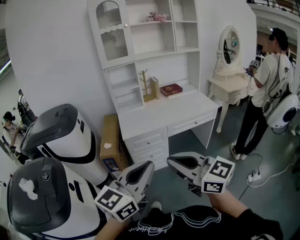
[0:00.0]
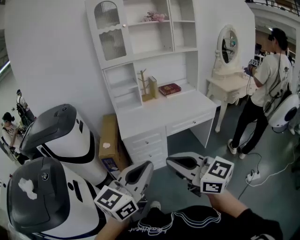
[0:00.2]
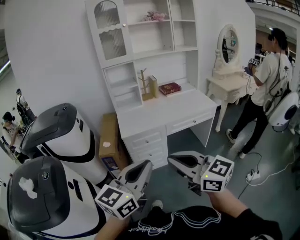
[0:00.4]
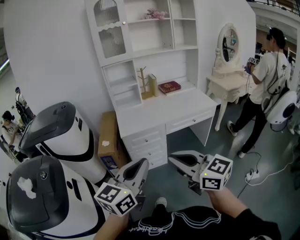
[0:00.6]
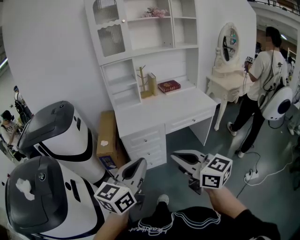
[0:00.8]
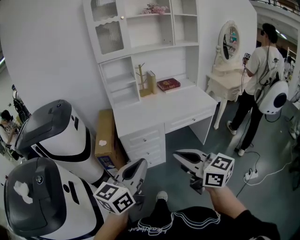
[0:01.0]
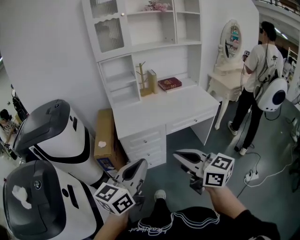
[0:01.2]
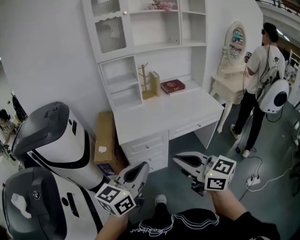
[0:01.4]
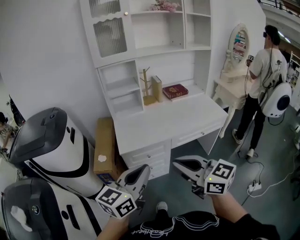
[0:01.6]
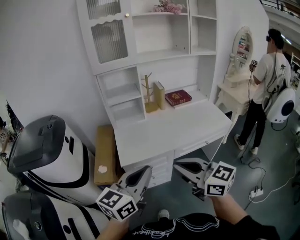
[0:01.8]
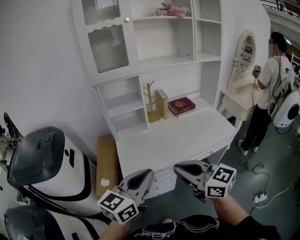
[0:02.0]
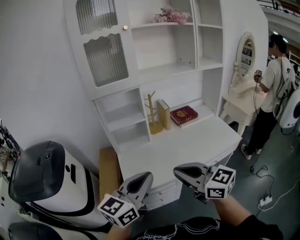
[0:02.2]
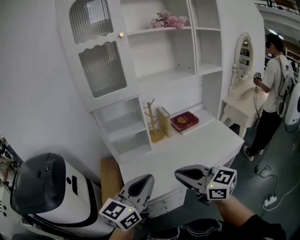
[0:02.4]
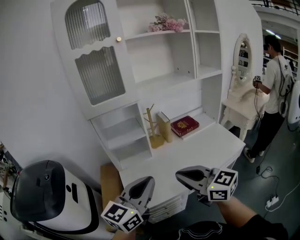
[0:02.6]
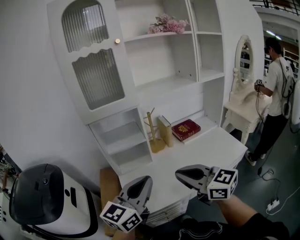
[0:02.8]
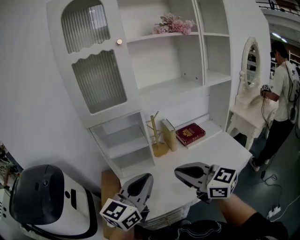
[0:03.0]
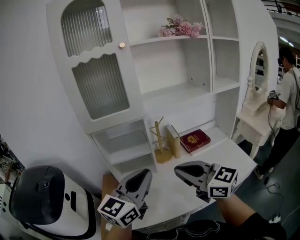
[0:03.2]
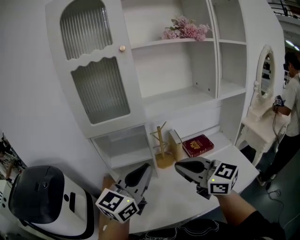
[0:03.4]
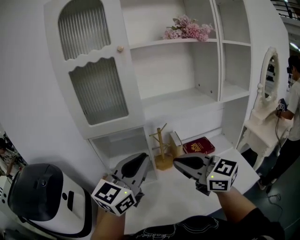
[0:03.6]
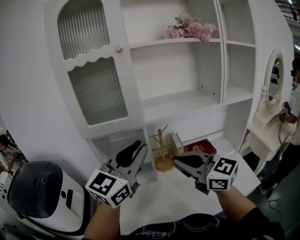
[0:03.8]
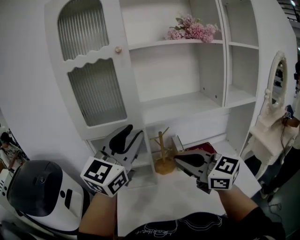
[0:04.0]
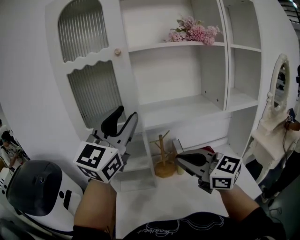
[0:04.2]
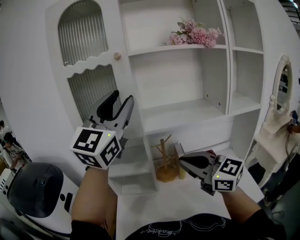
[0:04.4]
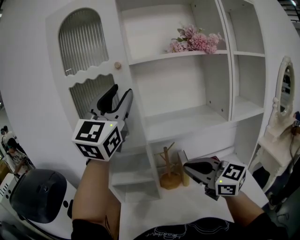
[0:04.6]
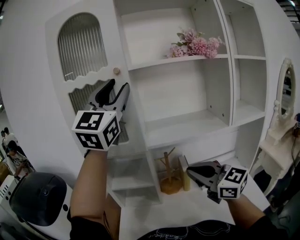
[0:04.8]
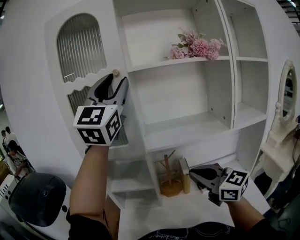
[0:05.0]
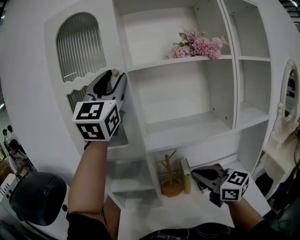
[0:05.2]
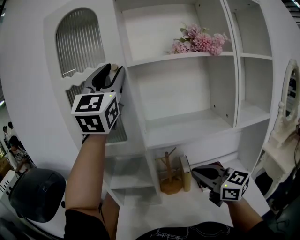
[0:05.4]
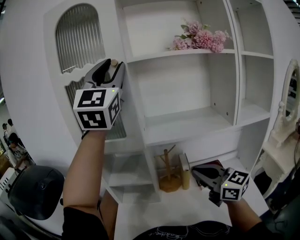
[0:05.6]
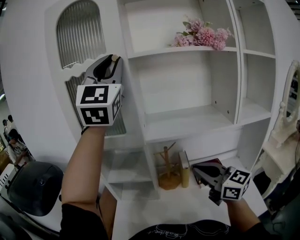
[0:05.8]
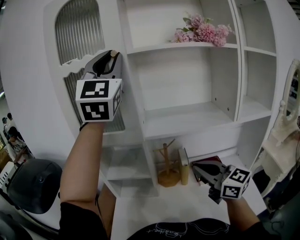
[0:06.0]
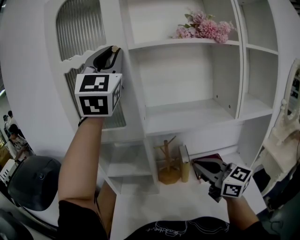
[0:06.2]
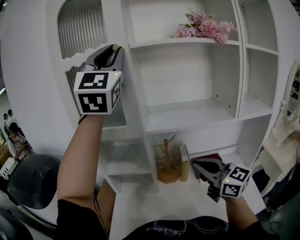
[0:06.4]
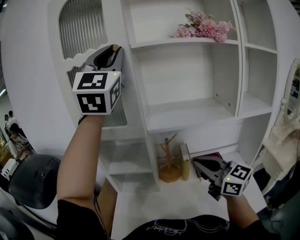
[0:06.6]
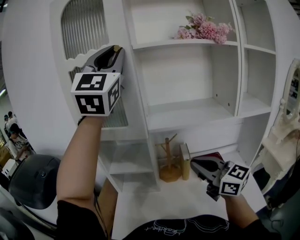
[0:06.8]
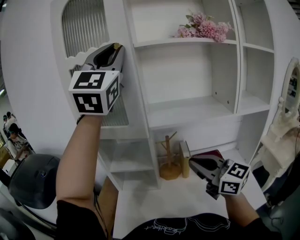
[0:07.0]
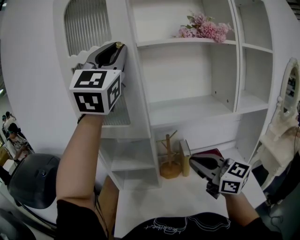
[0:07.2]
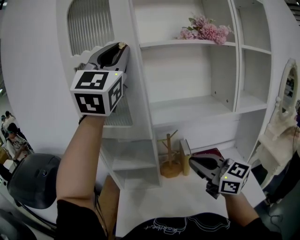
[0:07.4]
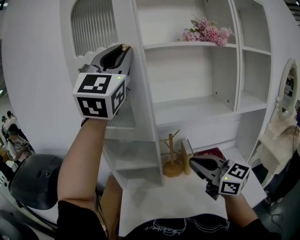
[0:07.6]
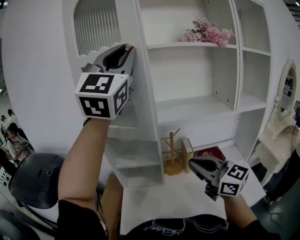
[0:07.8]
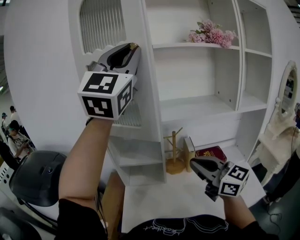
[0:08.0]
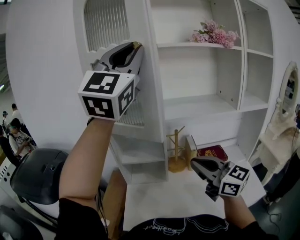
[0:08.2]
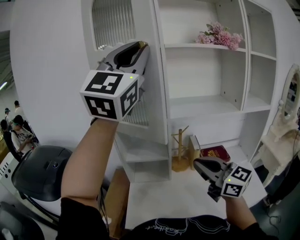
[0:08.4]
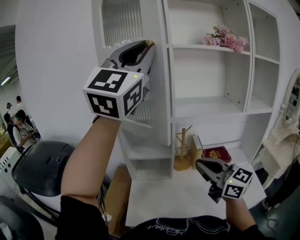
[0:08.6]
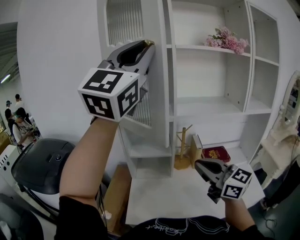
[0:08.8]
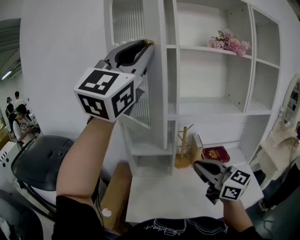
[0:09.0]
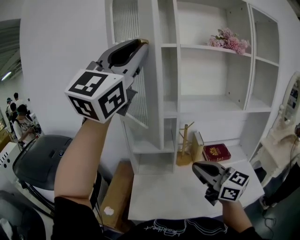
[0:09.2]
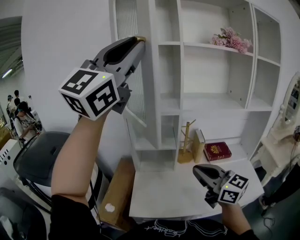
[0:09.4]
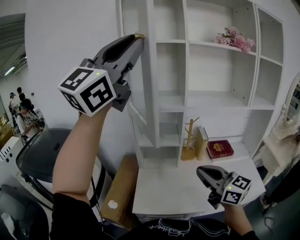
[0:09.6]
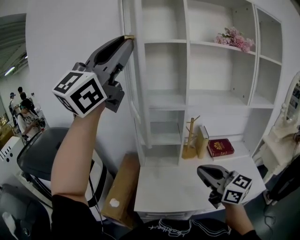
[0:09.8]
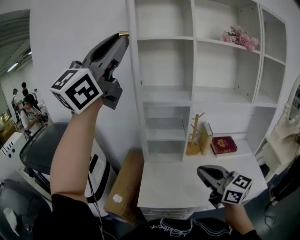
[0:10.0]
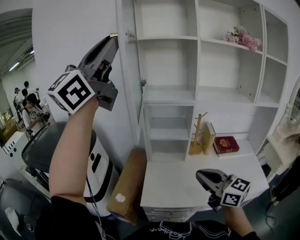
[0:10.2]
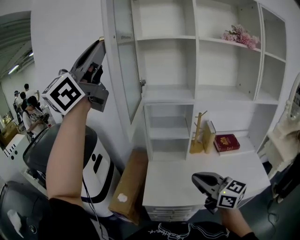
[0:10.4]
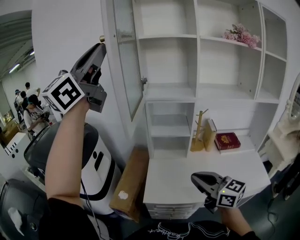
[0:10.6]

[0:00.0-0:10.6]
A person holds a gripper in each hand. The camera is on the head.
0:00.0 to 0:01.6: The two grippers go roughly 20 cm forward.
0:01.6 to 0:03.0: Both grippers move forward, some 35 cm.
0:03.0 to 0:04.6: The left gripper is displaced upward and forward by roughly 40 cm, turns by some 50 degrees, and opens up. The right gripper shifts roughly 20 cm forward, to the right and upward.
0:04.6 to 0:06.0: The left gripper shifts approximately 10 cm upward and forward, and swivels roughly 20 degrees, while the right gripper is displaced to the right by about 5 cm.
0:06.0 to 0:07.6: The right gripper goes about 5 cm to the left, while the left gripper shifts about 5 cm backward.
0:07.6 to 0:09.0: The right gripper is displaced to the left and backward by approximately 10 cm, while the left gripper moves backward and to the left, some 15 cm.
0:09.0 to 0:10.6: The left gripper goes approximately 20 cm to the left, and changes its angle by roughly 20 degrees, while the right gripper heads backward, to the left and downward, covering some 15 cm.

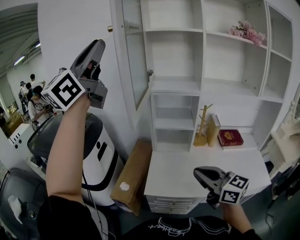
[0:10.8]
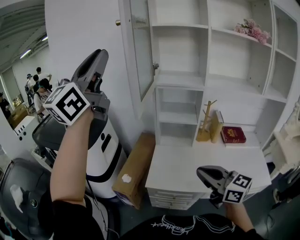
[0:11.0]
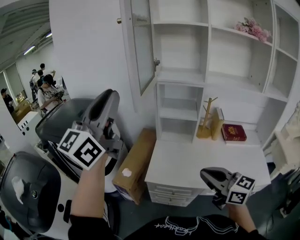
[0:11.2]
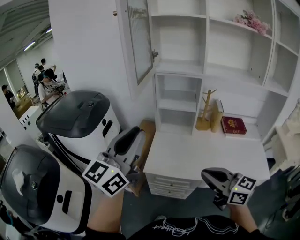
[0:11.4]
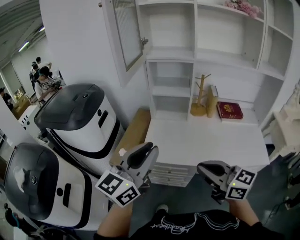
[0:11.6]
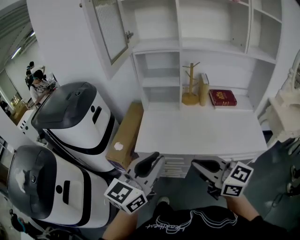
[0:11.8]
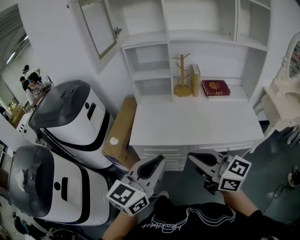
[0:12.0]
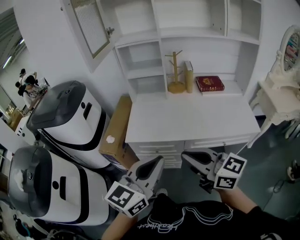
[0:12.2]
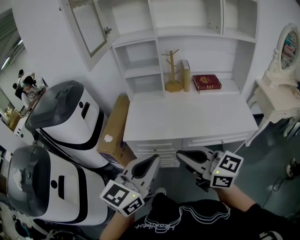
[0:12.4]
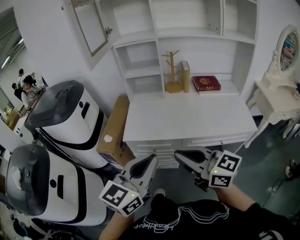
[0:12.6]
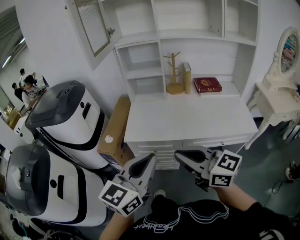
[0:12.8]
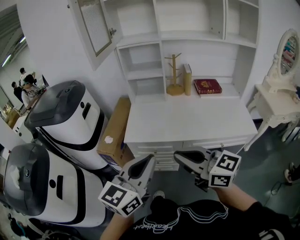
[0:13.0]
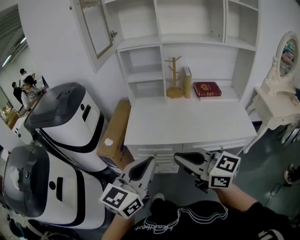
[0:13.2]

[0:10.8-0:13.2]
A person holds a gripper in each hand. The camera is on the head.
0:10.8 to 0:12.0: The left gripper heads downward, backward and to the right, covering approximately 60 cm, and tilts its fingers about 40 degrees downward; the right gripper goes roughly 20 cm backward.
0:12.0 to 0:13.2: The grippers stay close to where they were, moving slightly.

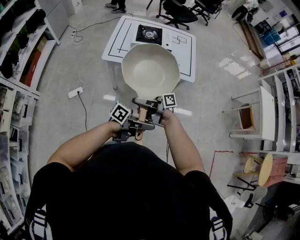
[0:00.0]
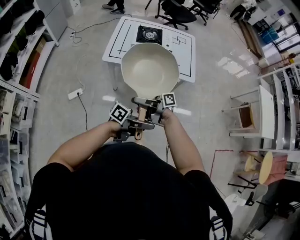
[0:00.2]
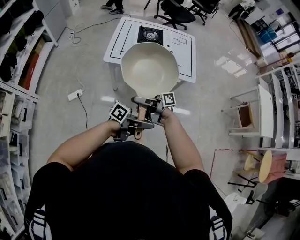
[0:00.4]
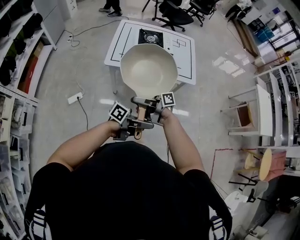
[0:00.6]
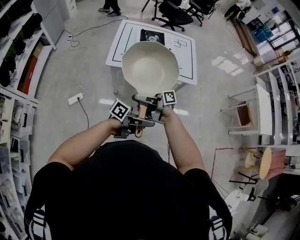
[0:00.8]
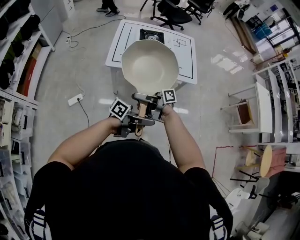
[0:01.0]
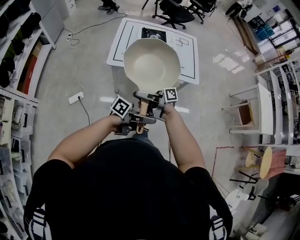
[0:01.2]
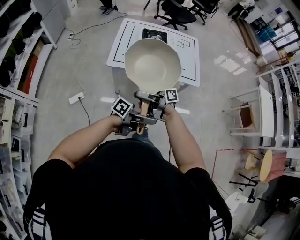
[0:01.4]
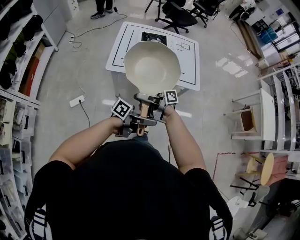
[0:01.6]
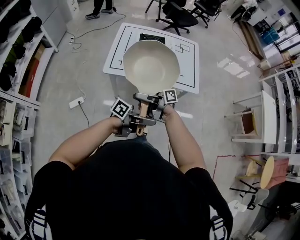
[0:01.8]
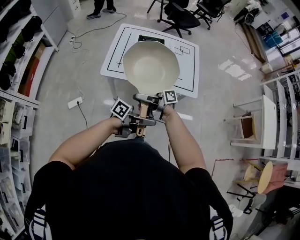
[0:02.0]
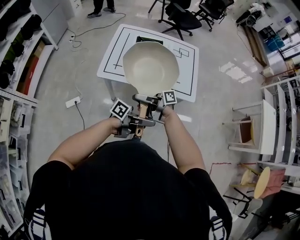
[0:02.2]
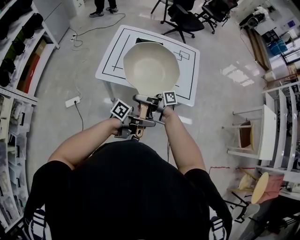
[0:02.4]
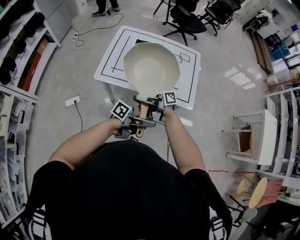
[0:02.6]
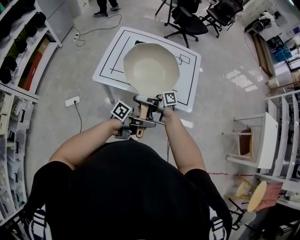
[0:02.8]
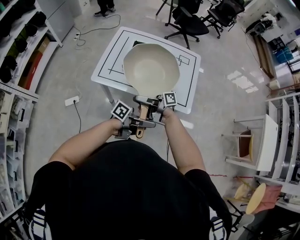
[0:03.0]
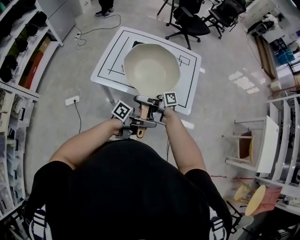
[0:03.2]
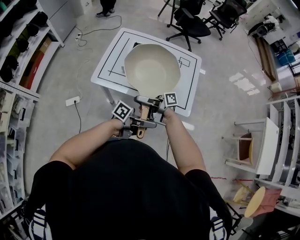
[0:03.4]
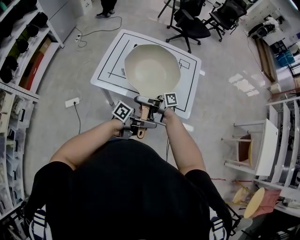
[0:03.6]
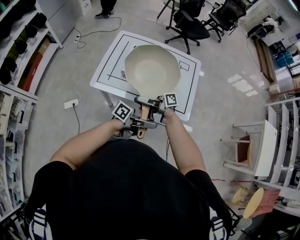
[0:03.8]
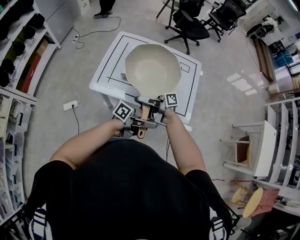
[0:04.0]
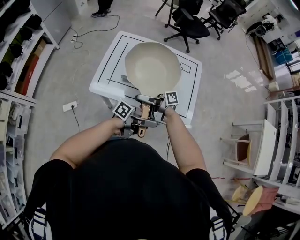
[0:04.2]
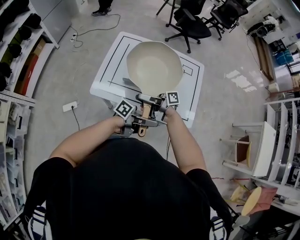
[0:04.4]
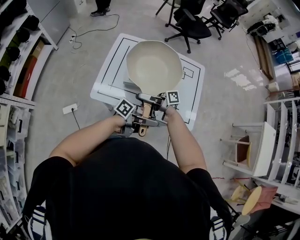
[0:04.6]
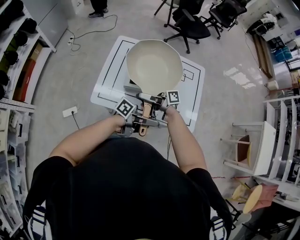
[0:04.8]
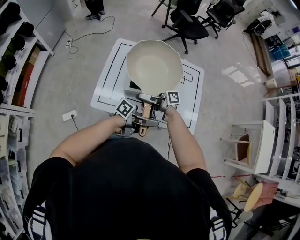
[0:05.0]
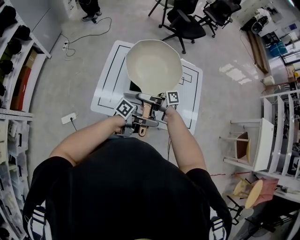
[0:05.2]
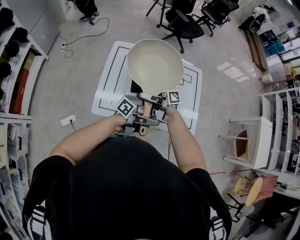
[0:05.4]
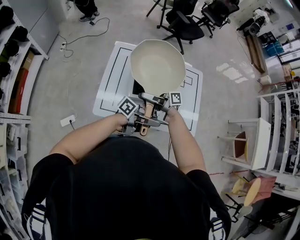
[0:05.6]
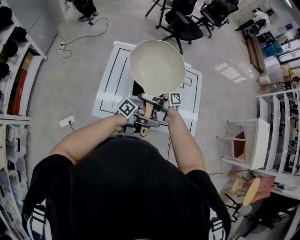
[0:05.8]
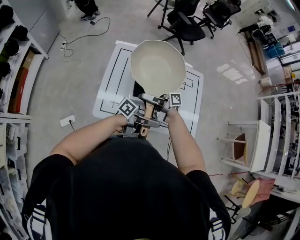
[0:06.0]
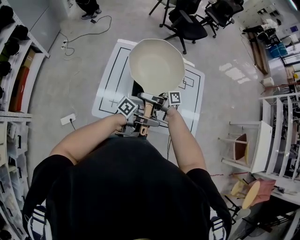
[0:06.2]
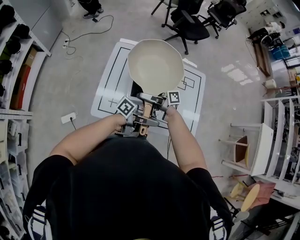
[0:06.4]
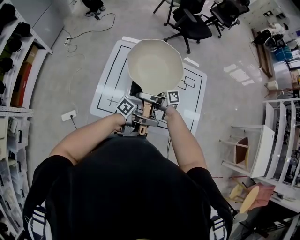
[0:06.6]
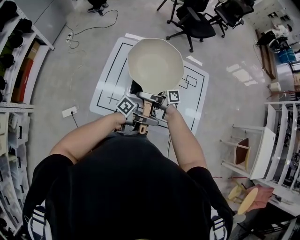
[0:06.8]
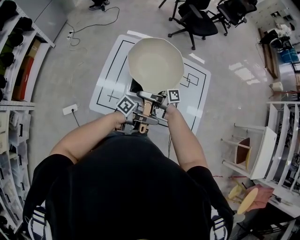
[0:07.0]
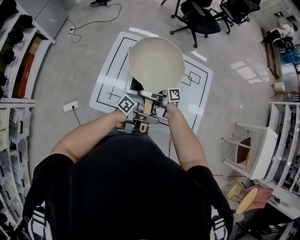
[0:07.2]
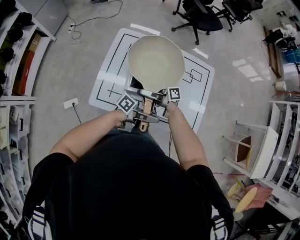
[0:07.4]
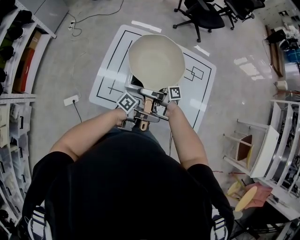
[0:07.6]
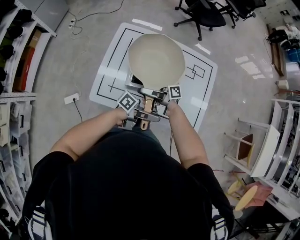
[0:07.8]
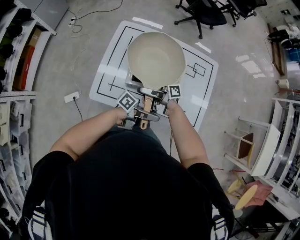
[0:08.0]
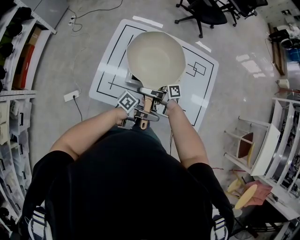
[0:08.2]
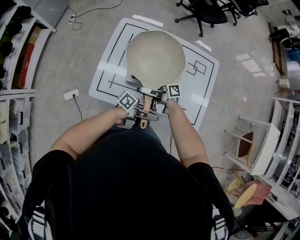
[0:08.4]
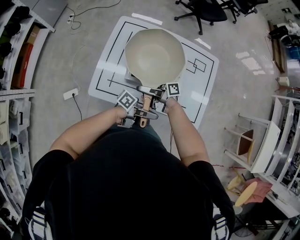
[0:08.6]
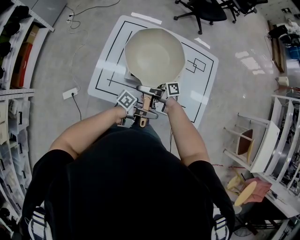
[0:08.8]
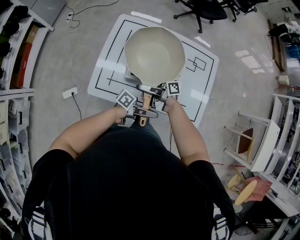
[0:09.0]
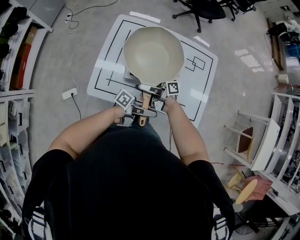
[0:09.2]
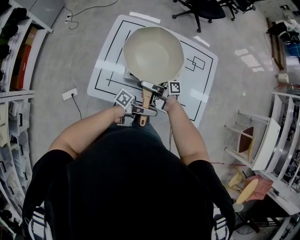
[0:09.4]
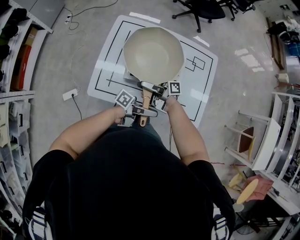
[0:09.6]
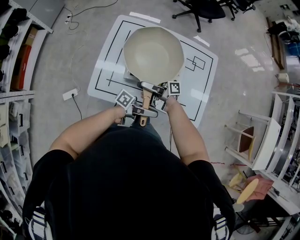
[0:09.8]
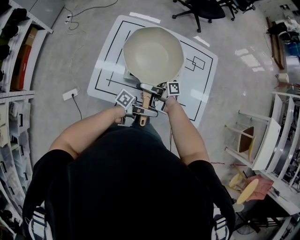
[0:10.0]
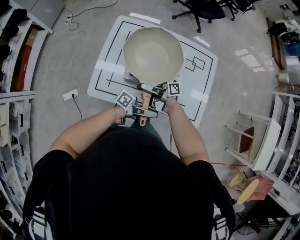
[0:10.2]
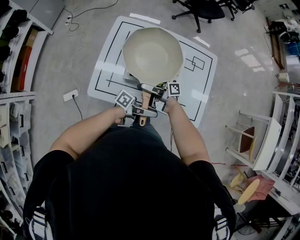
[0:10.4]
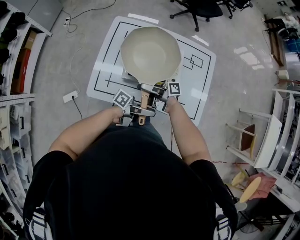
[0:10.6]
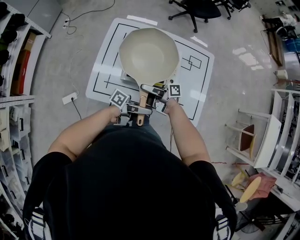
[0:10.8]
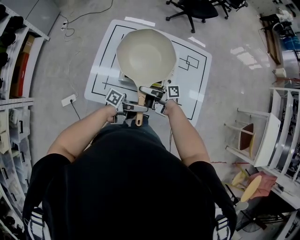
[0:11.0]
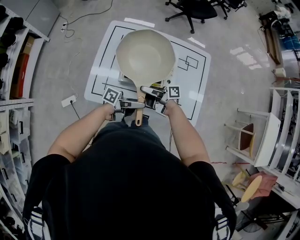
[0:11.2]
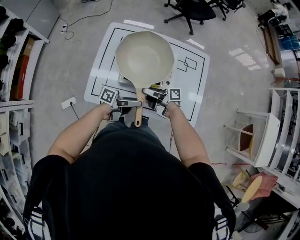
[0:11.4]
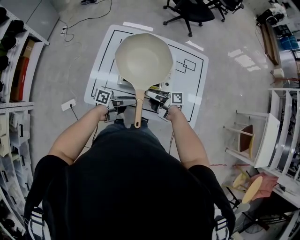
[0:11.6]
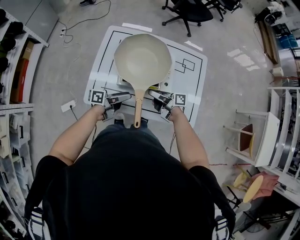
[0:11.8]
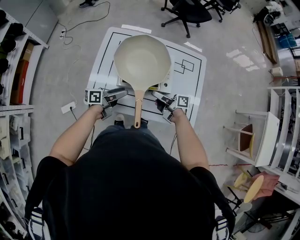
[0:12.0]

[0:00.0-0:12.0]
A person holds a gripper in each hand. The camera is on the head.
0:00.0 to 0:01.6: The left gripper ends up some 10 cm from where it was.
0:01.6 to 0:03.0: The left gripper shifts by roughly 20 cm.
0:03.0 to 0:04.4: The left gripper changes place by some 10 cm.
0:04.4 to 0:06.0: The left gripper moves roughly 15 cm.
0:06.0 to 0:07.6: The left gripper goes roughly 5 cm downward.
0:09.0 to 0:10.4: The left gripper opens.
0:10.4 to 0:12.0: The left gripper changes place by some 20 cm, and swivels roughly 40 degrees.
